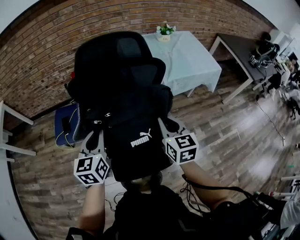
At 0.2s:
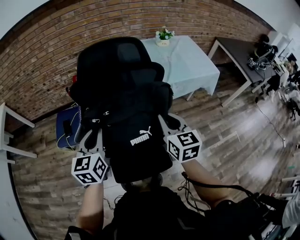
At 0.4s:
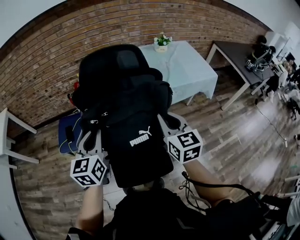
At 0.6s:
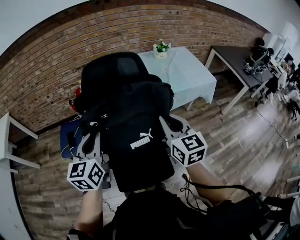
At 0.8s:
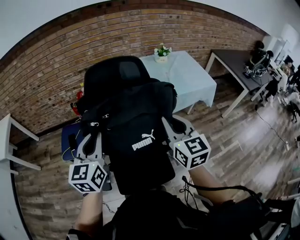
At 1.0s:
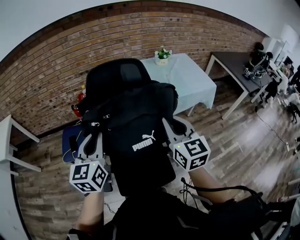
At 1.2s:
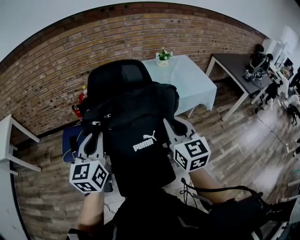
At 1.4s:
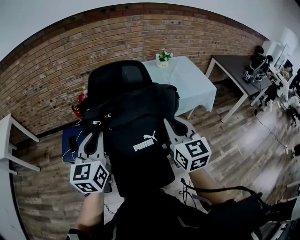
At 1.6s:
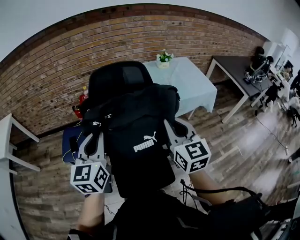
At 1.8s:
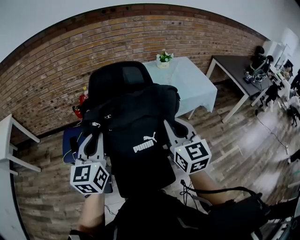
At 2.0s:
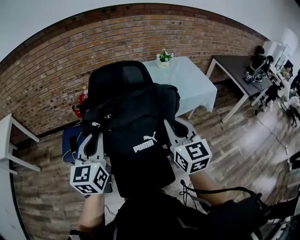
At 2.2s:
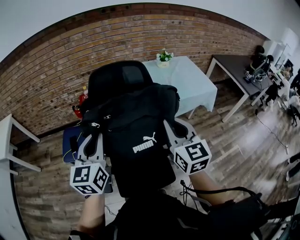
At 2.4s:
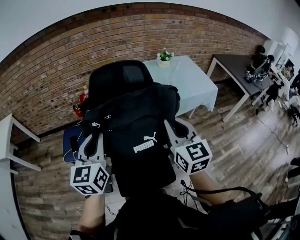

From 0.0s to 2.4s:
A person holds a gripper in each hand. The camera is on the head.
From 0.0s to 1.2s: Both grippers travel together upward, roughly 15 cm.
From 1.2s to 2.4s: The two grippers keep their place.

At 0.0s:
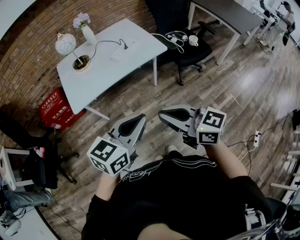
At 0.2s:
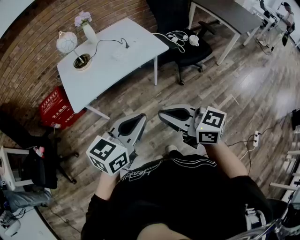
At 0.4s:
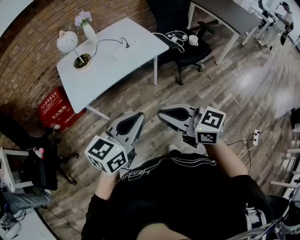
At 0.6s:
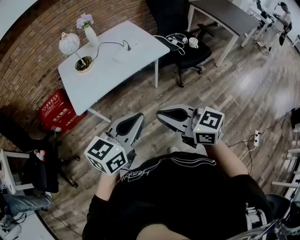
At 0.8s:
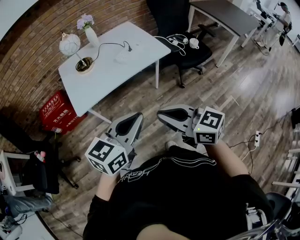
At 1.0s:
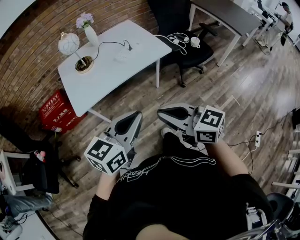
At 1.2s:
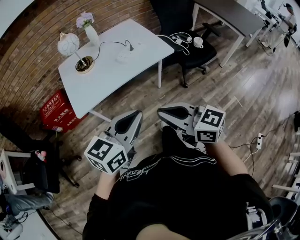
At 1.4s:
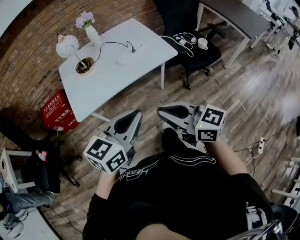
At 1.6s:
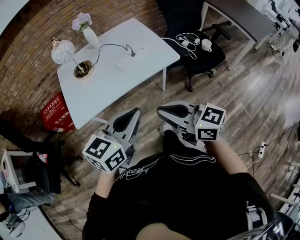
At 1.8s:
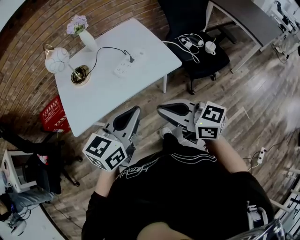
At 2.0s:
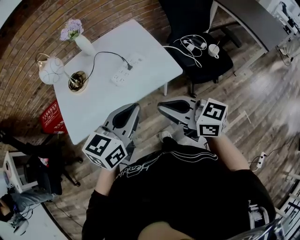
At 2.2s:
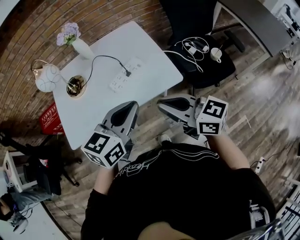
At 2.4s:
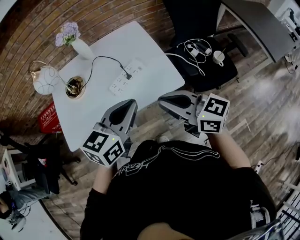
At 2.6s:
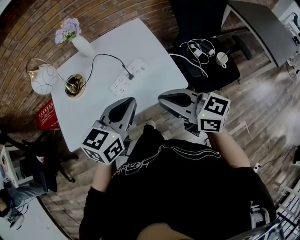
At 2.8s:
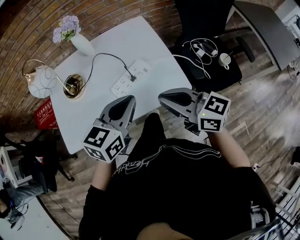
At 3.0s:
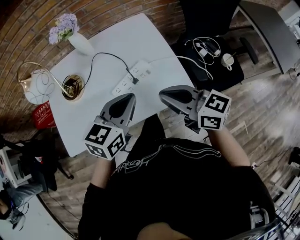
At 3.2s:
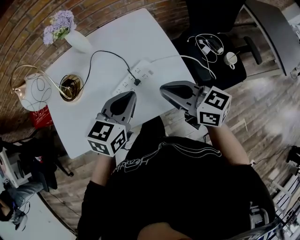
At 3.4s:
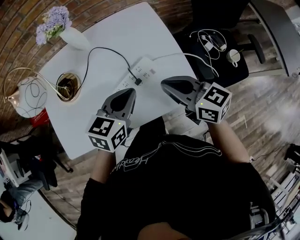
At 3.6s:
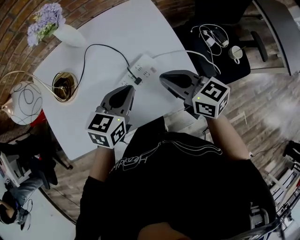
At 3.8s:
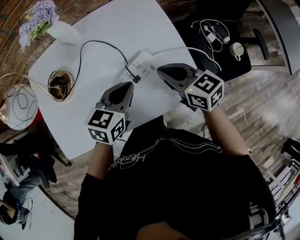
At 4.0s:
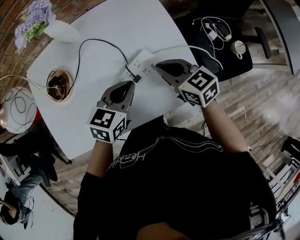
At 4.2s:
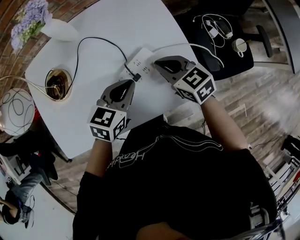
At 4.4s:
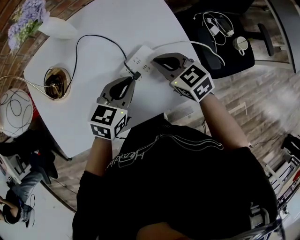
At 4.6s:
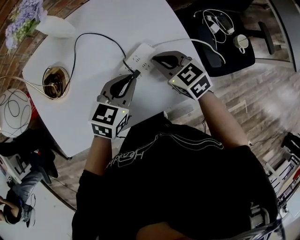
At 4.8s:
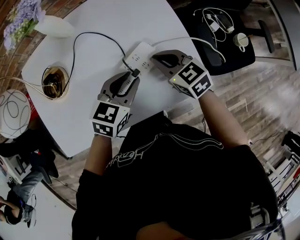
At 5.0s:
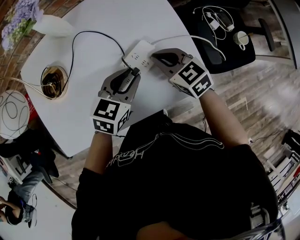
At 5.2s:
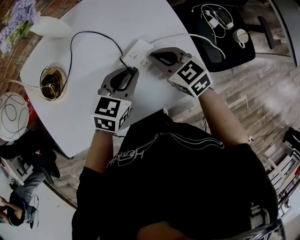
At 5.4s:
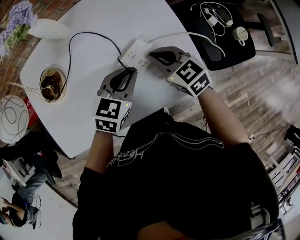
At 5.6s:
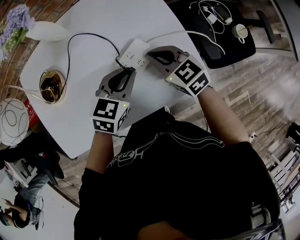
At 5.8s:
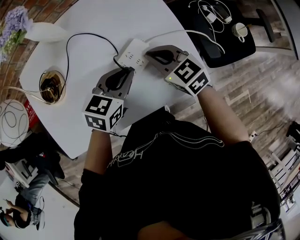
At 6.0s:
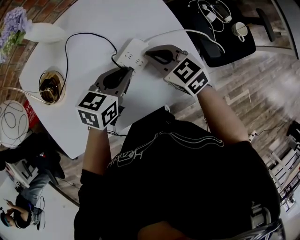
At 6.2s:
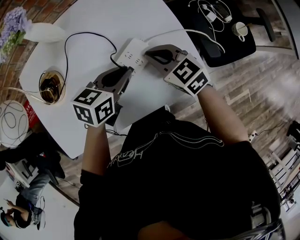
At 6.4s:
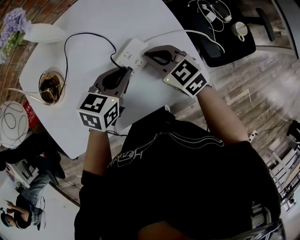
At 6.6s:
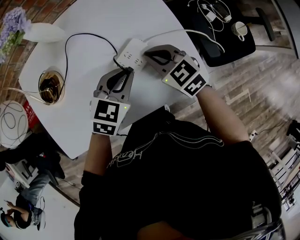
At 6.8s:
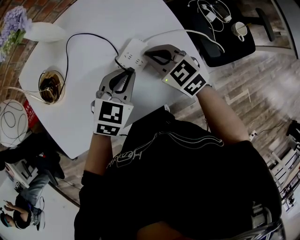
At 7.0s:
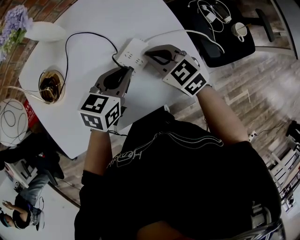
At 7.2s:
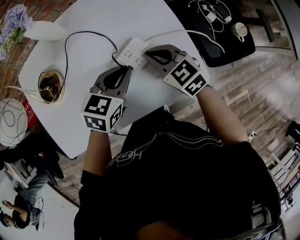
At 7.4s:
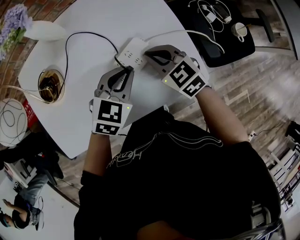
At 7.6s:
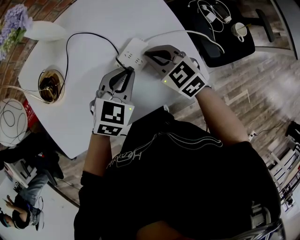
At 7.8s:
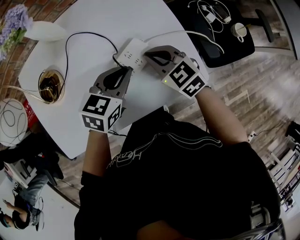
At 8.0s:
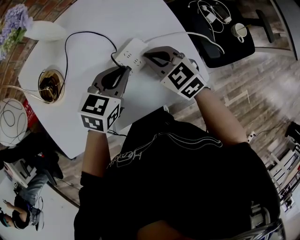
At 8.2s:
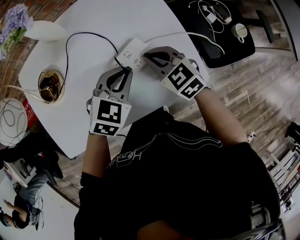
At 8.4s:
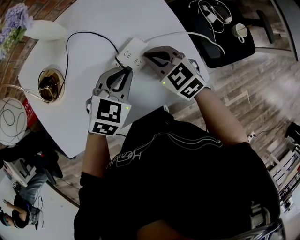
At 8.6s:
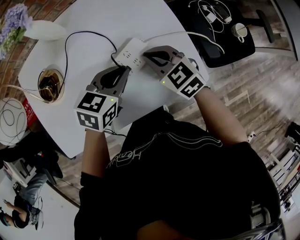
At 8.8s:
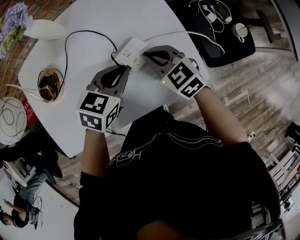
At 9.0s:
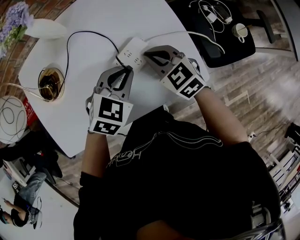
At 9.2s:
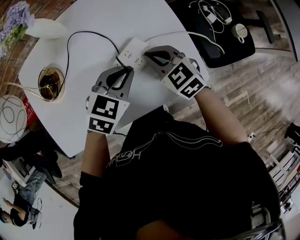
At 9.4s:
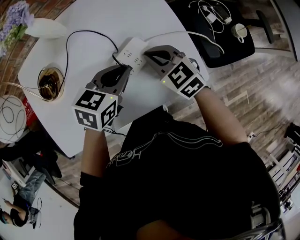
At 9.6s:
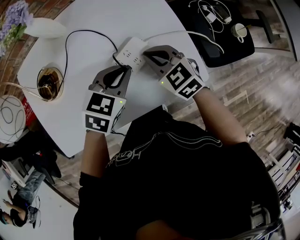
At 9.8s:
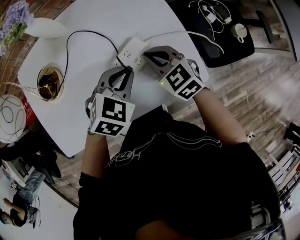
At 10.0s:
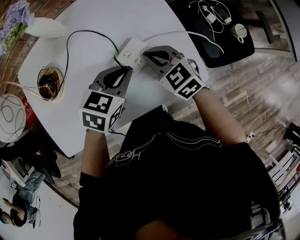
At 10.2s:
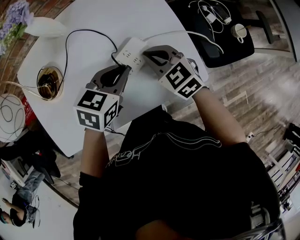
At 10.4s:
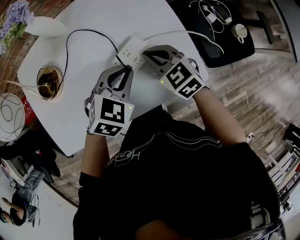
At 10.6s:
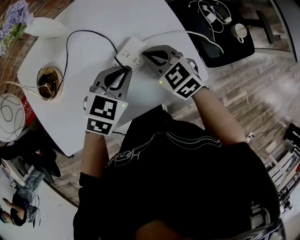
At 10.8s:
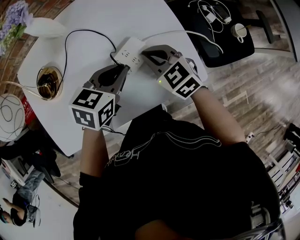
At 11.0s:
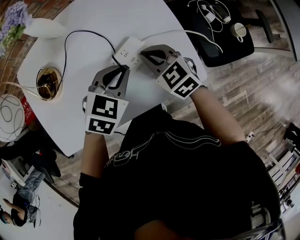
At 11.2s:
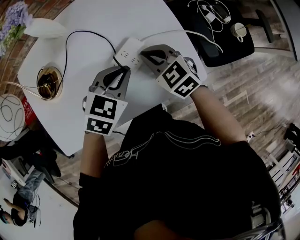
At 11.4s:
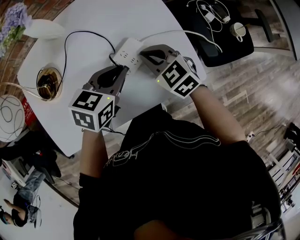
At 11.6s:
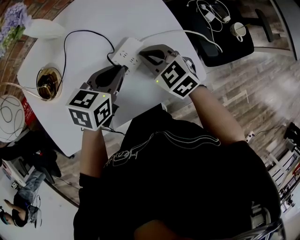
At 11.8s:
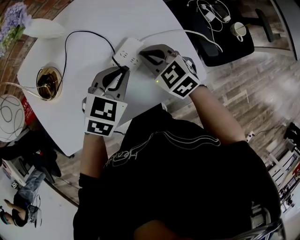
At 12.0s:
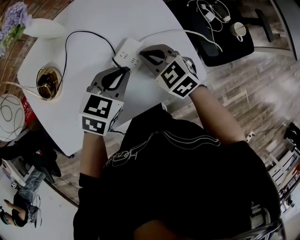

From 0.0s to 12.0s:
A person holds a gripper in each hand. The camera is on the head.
From 0.0s to 1.6s: The two grippers go about 15 cm forward.
From 1.6s to 3.0s: Both grippers move forward, roughly 35 cm.
From 3.0s to 4.4s: Both grippers move downward and forward, about 20 cm. The right gripper rotates roughly 30 degrees.
From 4.4s to 6.0s: The grippers make only small movements.
From 6.0s to 7.6s: The left gripper swivels some 30 degrees.

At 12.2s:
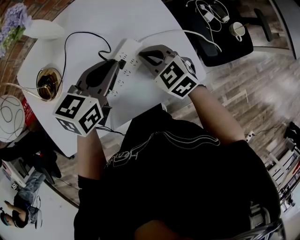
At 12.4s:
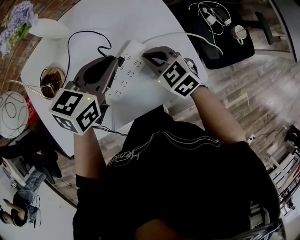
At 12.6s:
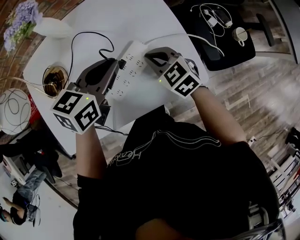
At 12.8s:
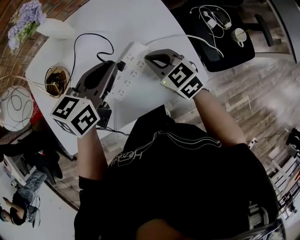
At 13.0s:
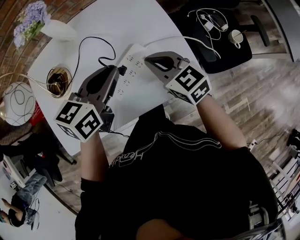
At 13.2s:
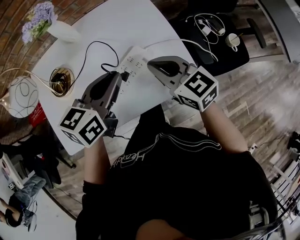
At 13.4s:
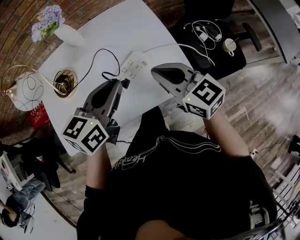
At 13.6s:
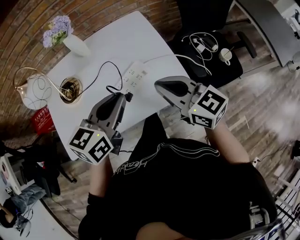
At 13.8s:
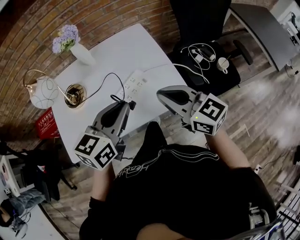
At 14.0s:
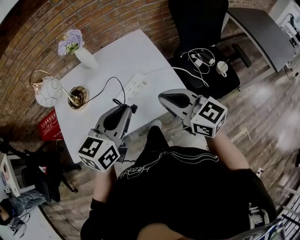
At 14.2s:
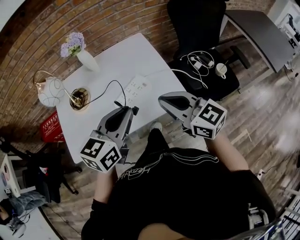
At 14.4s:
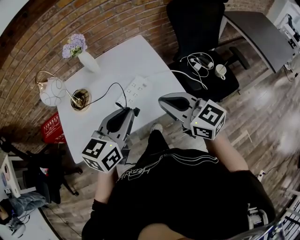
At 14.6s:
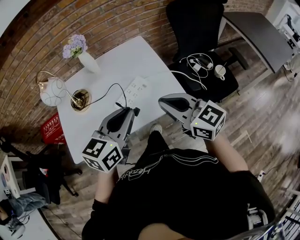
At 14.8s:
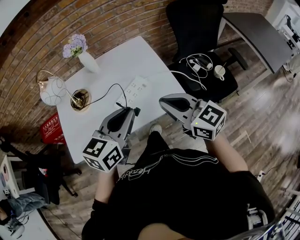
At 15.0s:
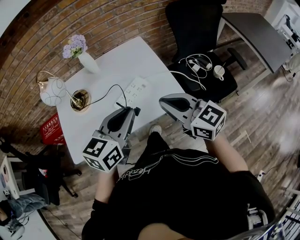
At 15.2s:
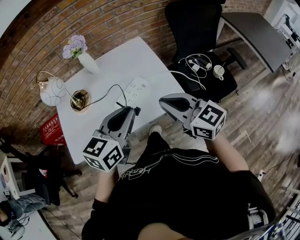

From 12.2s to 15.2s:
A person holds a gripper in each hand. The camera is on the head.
From 12.2s to 13.8s: The left gripper goes roughly 20 cm backward and upward, while the right gripper goes roughly 25 cm upward and backward, and rotates about 30 degrees.
From 13.8s to 15.2s: Both grippers travel together backward, approximately 5 cm.

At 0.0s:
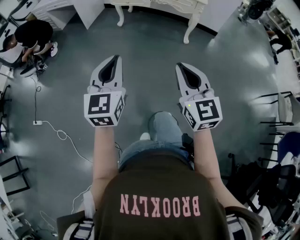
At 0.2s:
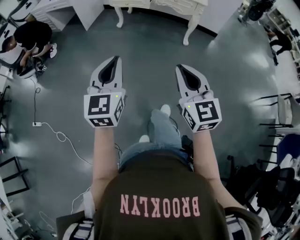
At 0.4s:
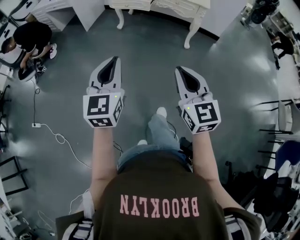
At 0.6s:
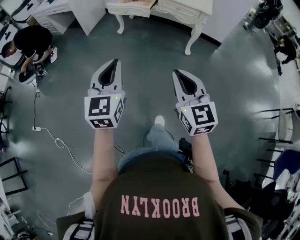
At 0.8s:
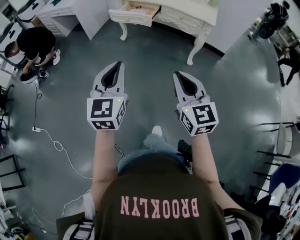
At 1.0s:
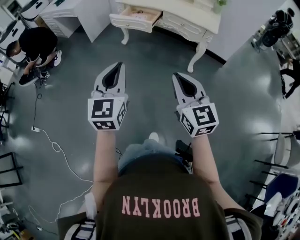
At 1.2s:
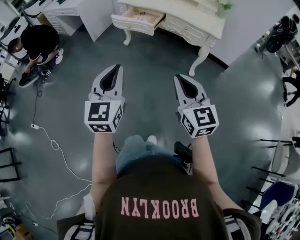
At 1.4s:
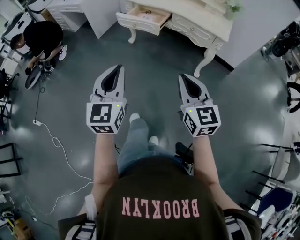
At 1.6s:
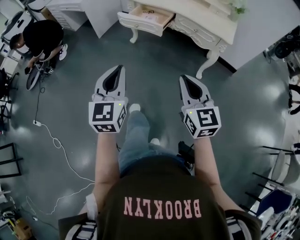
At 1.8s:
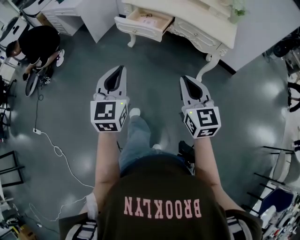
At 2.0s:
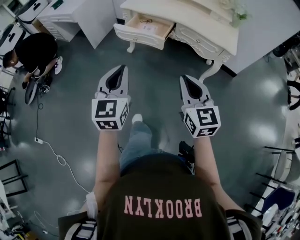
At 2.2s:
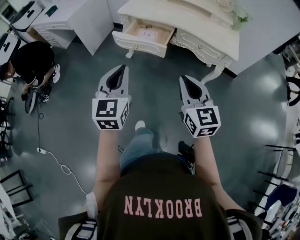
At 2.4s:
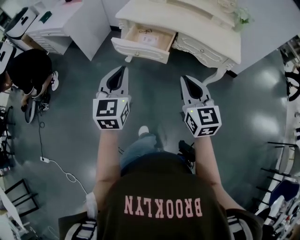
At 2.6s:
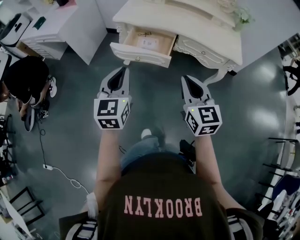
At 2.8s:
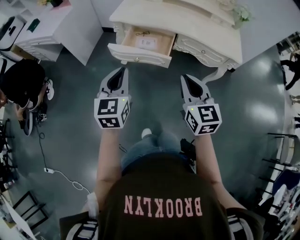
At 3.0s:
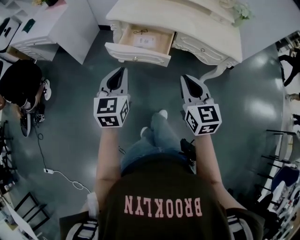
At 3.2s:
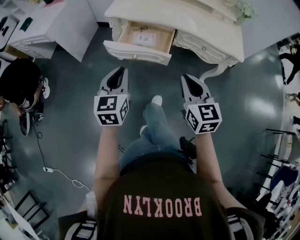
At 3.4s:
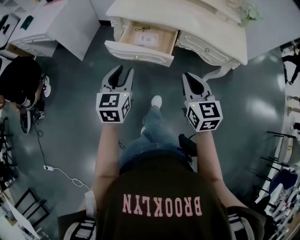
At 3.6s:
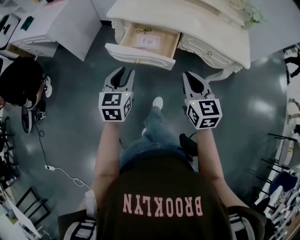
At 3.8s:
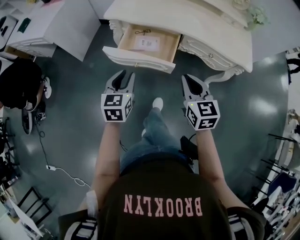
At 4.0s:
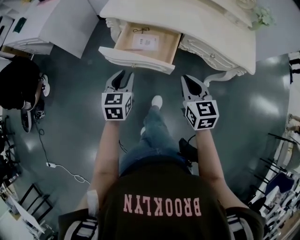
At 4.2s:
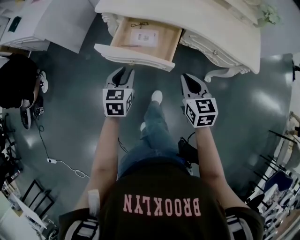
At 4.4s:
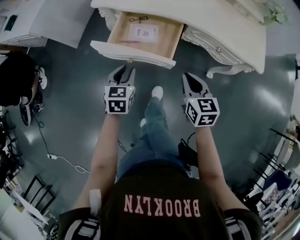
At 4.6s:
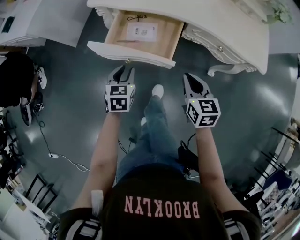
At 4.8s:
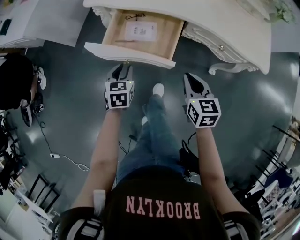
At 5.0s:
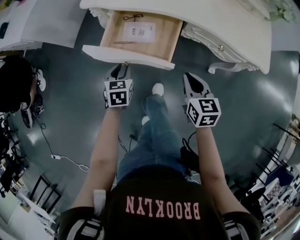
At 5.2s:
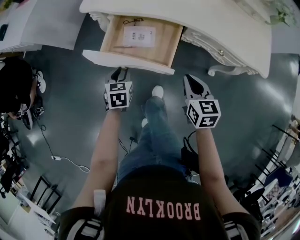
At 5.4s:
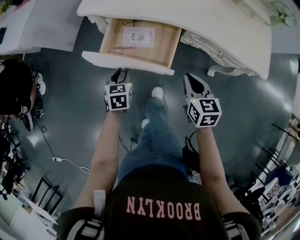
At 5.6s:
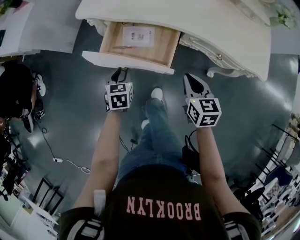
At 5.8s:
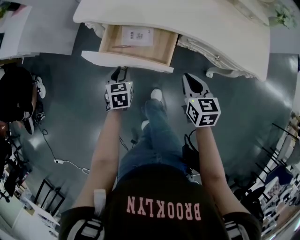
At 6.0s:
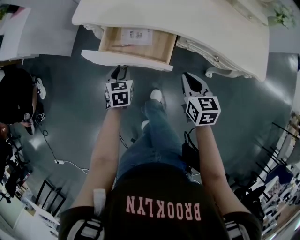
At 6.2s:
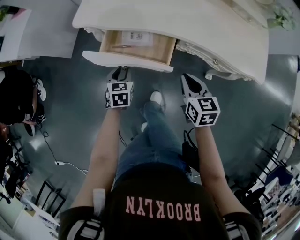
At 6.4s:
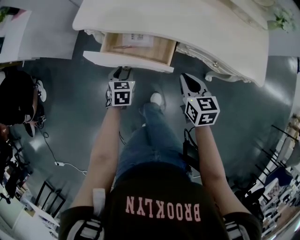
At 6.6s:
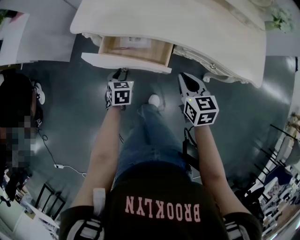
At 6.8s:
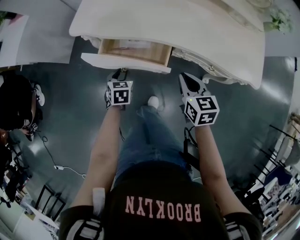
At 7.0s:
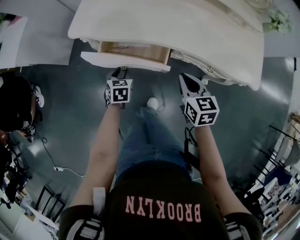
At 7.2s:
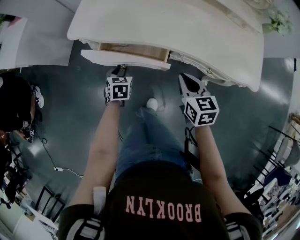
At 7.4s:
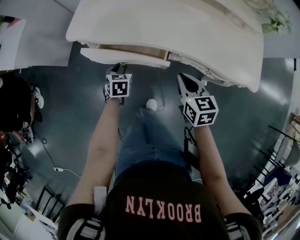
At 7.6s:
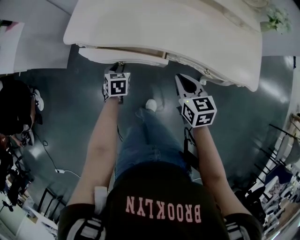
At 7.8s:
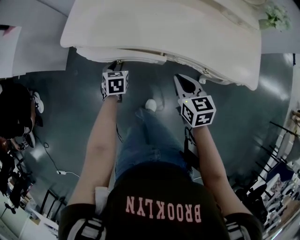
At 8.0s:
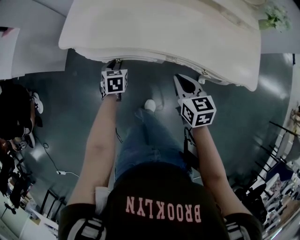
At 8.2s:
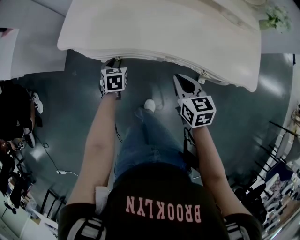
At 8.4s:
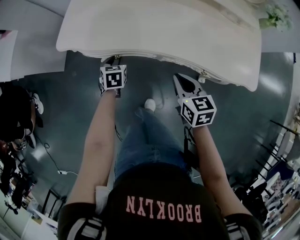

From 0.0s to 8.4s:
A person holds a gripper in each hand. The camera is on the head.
From 0.0s to 1.4s: Both grippers travel together forward and to the right, some 35 cm.
From 1.4s to 2.8s: The two grippers go approximately 40 cm forward.
From 2.8s to 4.2s: The right gripper heads forward and downward, covering approximately 25 cm, while the left gripper moves downward and forward, approximately 25 cm, rotates roughly 20 degrees, and opens its fingers.
From 4.2s to 5.6s: The two grippers go roughly 10 cm downward and forward.
From 5.6s to 7.0s: The grippers both shift forward by about 5 cm.
From 7.0s to 8.4s: The left gripper goes approximately 10 cm forward.
